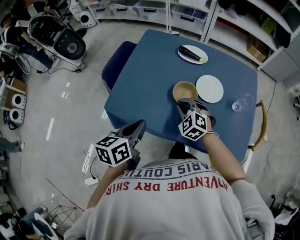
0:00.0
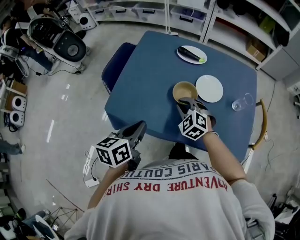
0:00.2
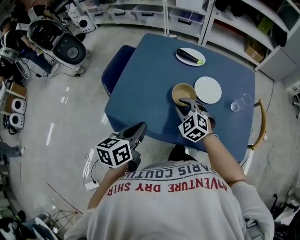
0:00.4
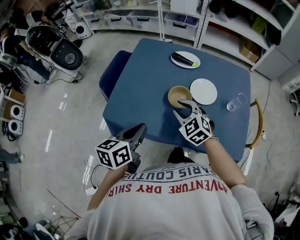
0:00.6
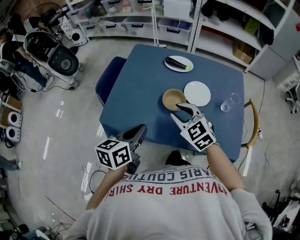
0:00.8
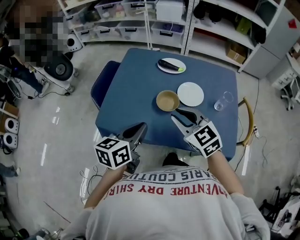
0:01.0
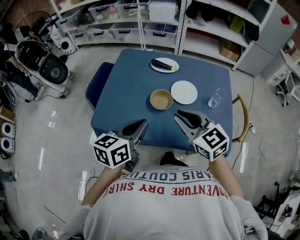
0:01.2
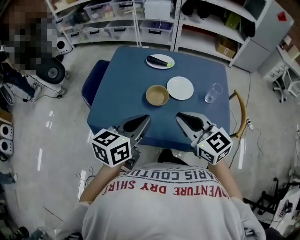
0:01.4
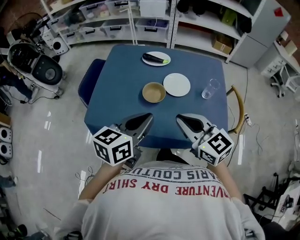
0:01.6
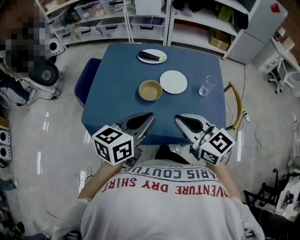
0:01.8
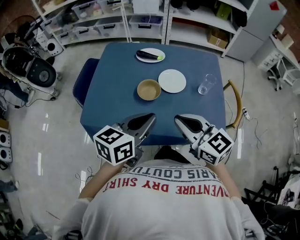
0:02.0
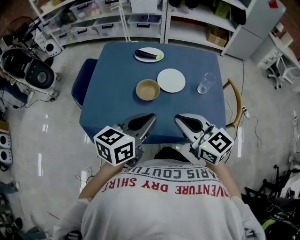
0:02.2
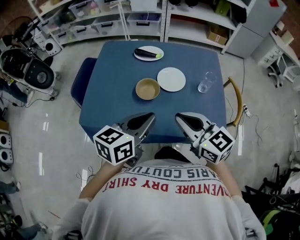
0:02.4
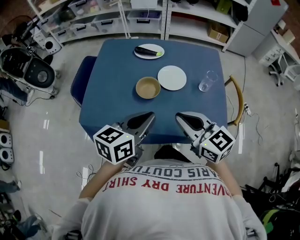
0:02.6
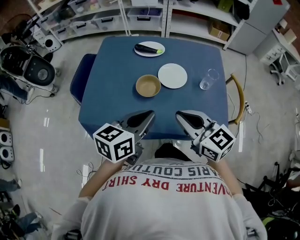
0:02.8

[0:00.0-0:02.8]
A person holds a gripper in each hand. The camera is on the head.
0:00.0 to 0:01.4: The left gripper travels to the right and upward by approximately 15 cm, and rotates roughly 20 degrees; the right gripper travels upward, backward and to the right by about 25 cm, and rotates about 50 degrees.
0:01.4 to 0:02.8: The left gripper ends up some 5 cm from where it was.

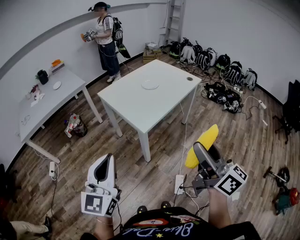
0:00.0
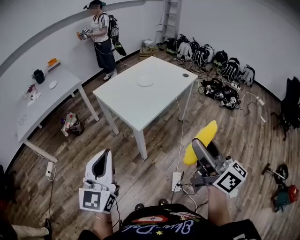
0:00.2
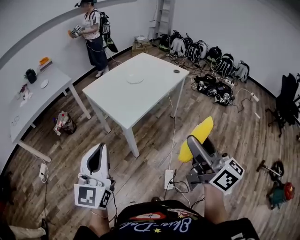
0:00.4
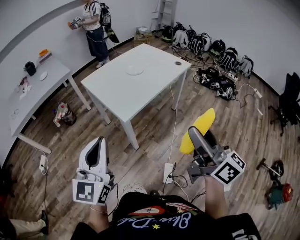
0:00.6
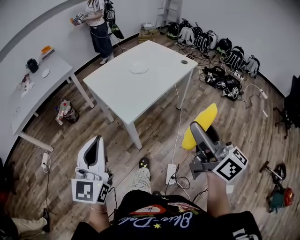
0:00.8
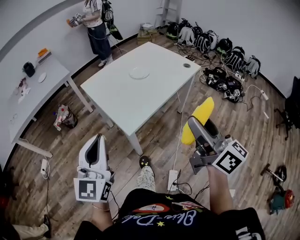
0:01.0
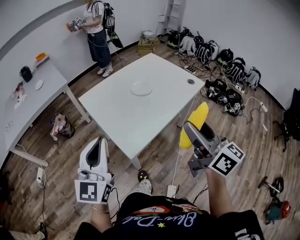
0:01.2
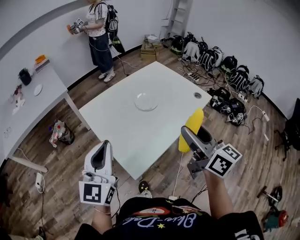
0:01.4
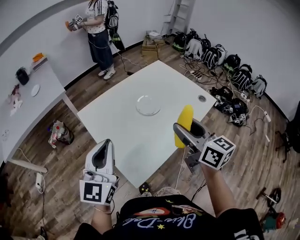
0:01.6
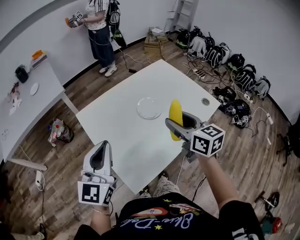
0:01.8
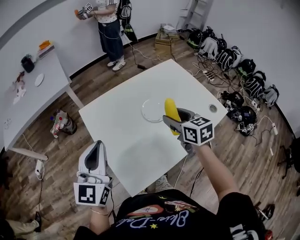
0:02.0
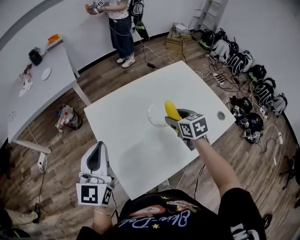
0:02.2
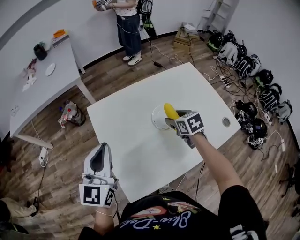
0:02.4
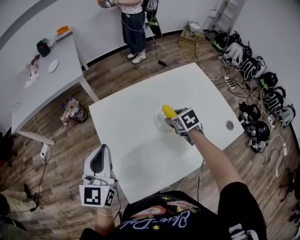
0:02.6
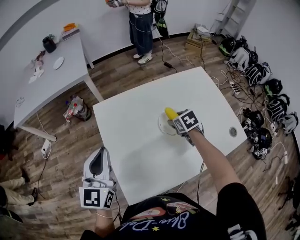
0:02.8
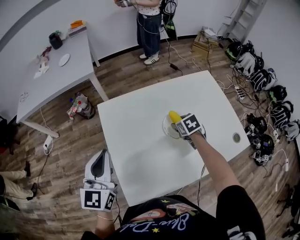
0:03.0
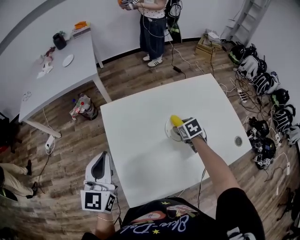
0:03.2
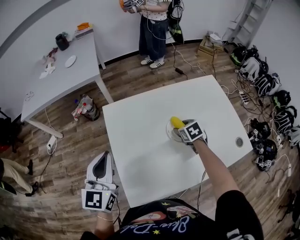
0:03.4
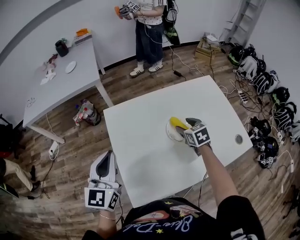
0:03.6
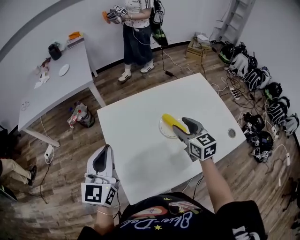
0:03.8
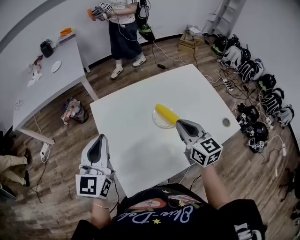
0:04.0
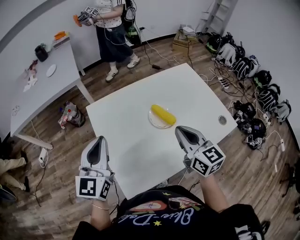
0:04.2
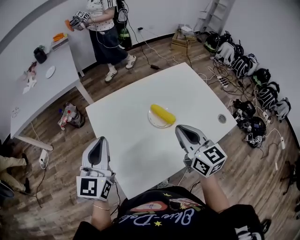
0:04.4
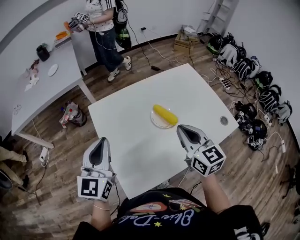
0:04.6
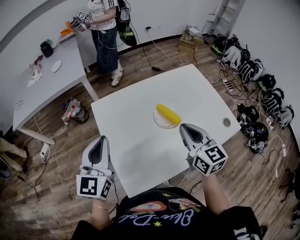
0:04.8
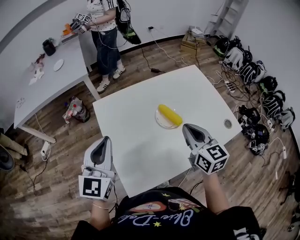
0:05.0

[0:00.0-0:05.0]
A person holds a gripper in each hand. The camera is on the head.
0:00.0 to 0:01.6: The two grippers travel together, forward, roughly 50 cm. The right gripper swivels some 20 degrees.
0:01.6 to 0:03.4: The left gripper moves approximately 10 cm, and rotates approximately 30 degrees. The right gripper ends up some 40 cm from where it was, and tips its fingers downward by some 50 degrees.
0:03.4 to 0:05.0: The right gripper travels upward and backward by roughly 25 cm, points its fingers roughly 40 degrees further upward, and closes its fingers.

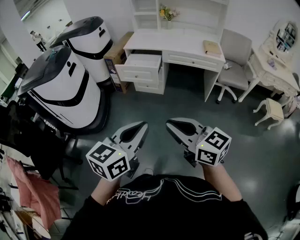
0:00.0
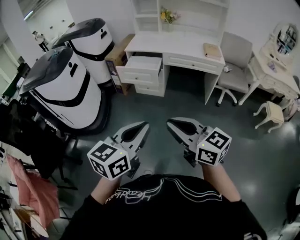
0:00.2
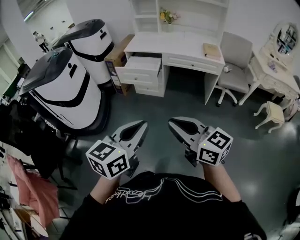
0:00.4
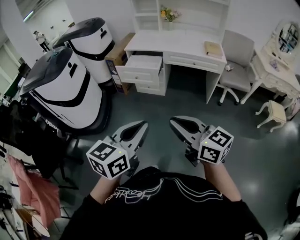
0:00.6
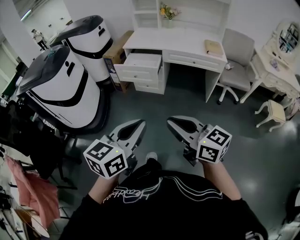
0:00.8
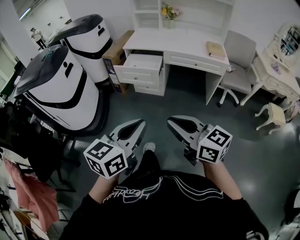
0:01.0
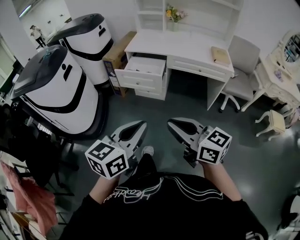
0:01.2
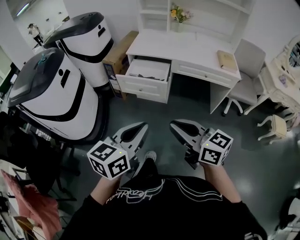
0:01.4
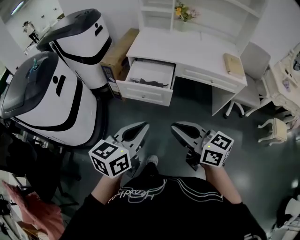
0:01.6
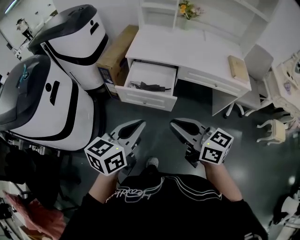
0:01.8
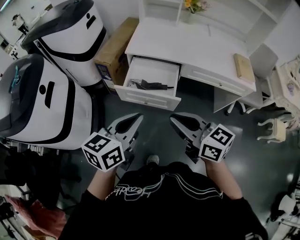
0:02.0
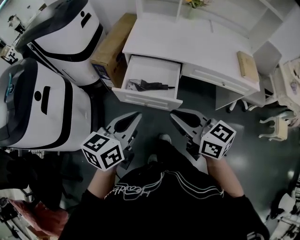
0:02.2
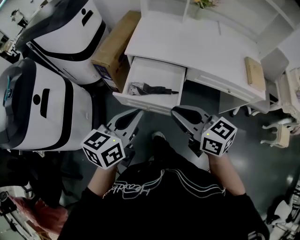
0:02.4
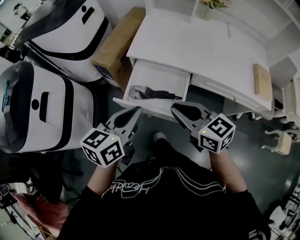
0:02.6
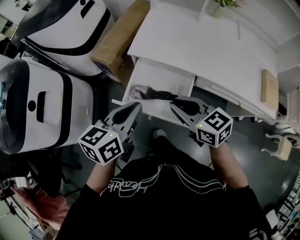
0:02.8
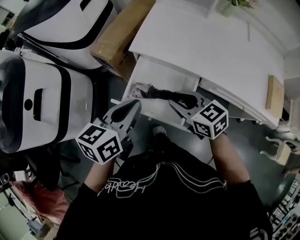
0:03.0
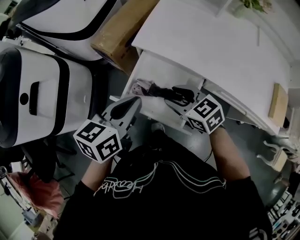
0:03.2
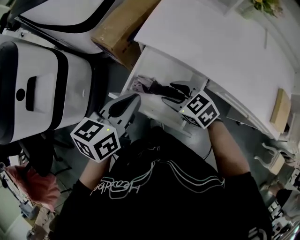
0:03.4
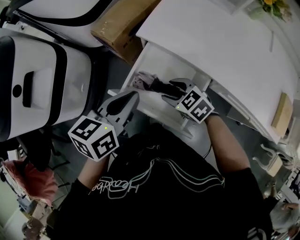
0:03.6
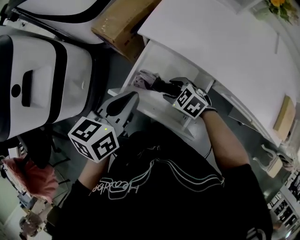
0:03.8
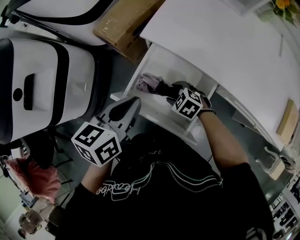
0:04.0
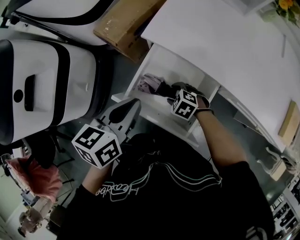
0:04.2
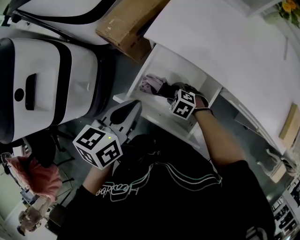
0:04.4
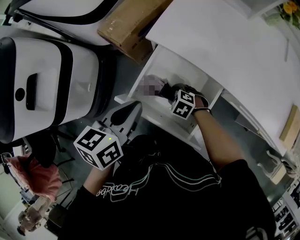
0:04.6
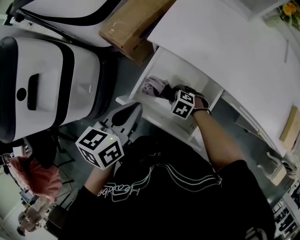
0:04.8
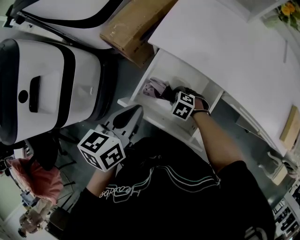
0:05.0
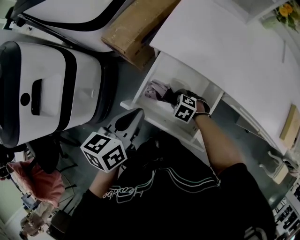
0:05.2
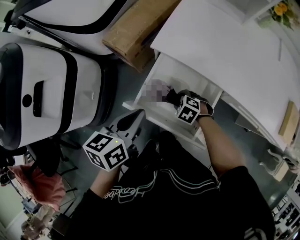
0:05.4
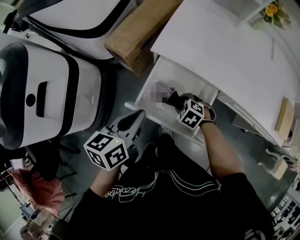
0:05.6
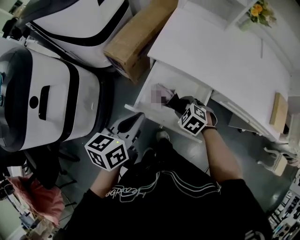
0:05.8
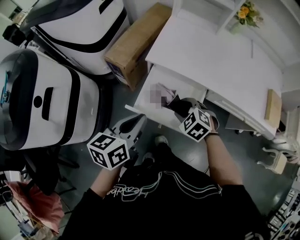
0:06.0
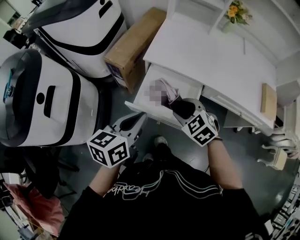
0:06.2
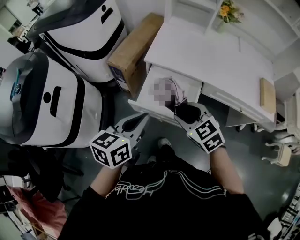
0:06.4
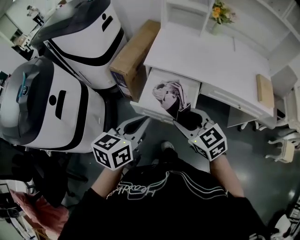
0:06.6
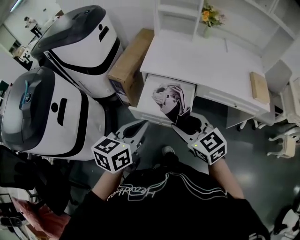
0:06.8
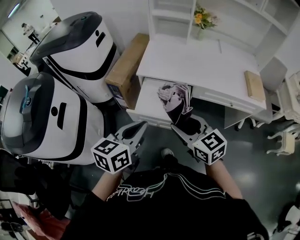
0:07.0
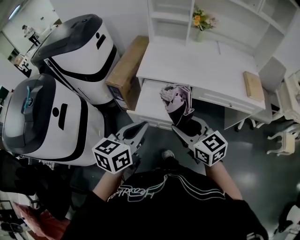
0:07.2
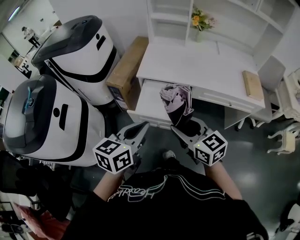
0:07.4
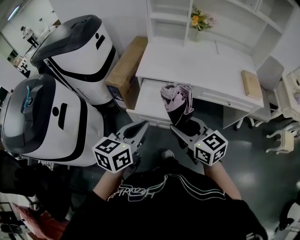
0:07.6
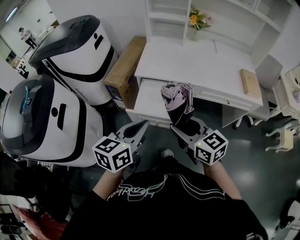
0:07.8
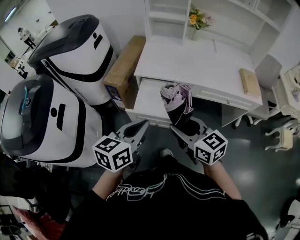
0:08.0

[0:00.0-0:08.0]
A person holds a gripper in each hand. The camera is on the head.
0:00.0 to 0:01.6: The two grippers go approximately 35 cm forward.
0:01.6 to 0:03.2: Both grippers are carried forward, about 50 cm. The left gripper turns by approximately 20 degrees. Meanwhile the right gripper shifts about 25 cm downward, points its fingers about 30 degrees further downward, and opens its fingers.
0:03.2 to 0:04.8: The right gripper moves downward, roughly 25 cm, and points its fingers roughly 30 degrees further downward, while the left gripper travels downward by some 5 cm.
0:04.8 to 0:06.4: The left gripper moves roughly 20 cm, while the right gripper is displaced upward by about 35 cm, and angles its fingers upward, by roughly 30 degrees.
0:06.4 to 0:08.0: Both grippers move backward and upward, roughly 10 cm. The right gripper rotates some 30 degrees.

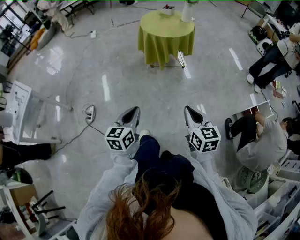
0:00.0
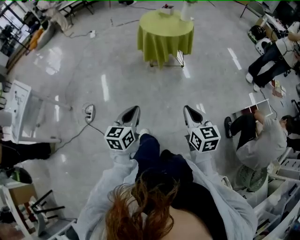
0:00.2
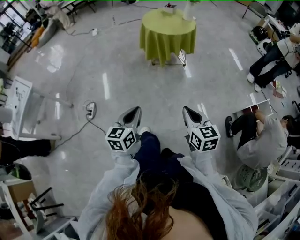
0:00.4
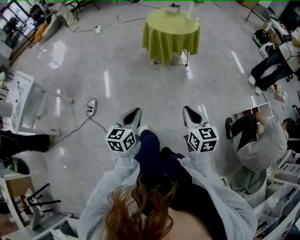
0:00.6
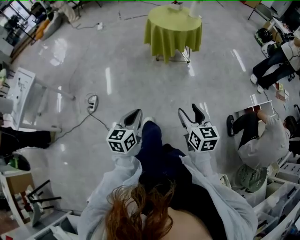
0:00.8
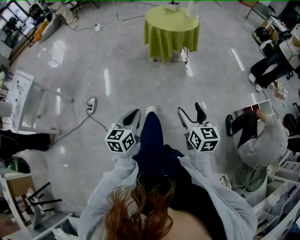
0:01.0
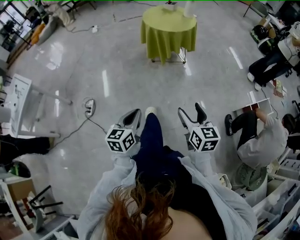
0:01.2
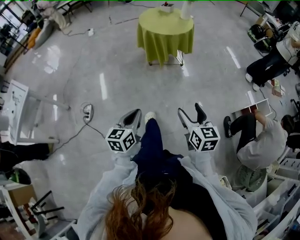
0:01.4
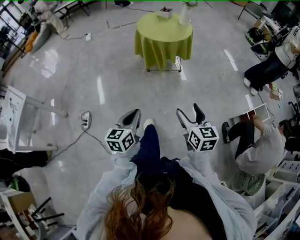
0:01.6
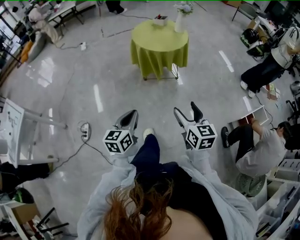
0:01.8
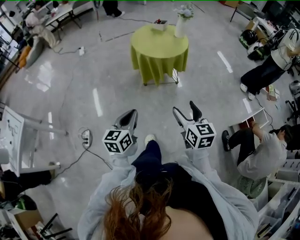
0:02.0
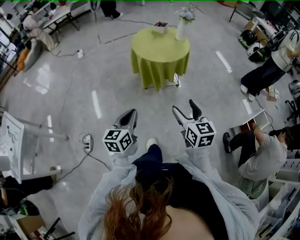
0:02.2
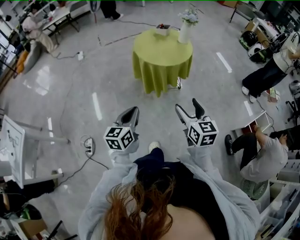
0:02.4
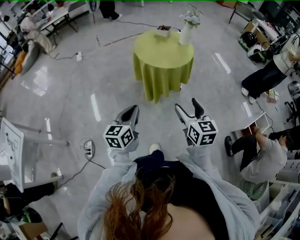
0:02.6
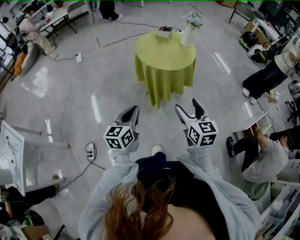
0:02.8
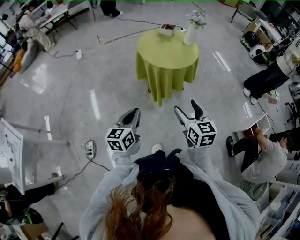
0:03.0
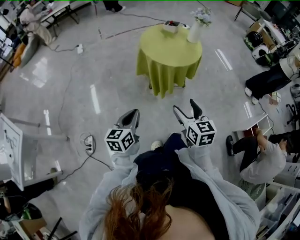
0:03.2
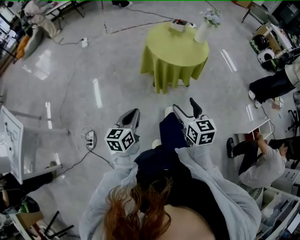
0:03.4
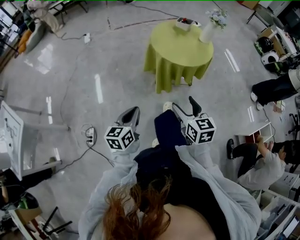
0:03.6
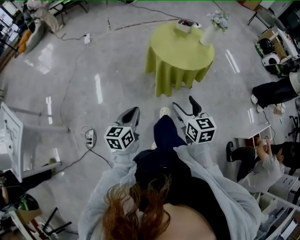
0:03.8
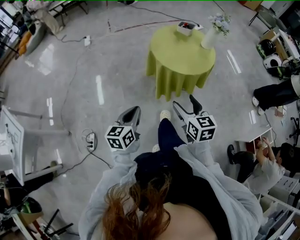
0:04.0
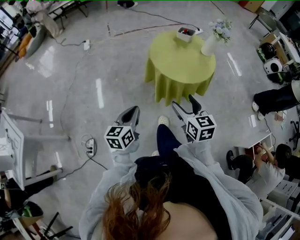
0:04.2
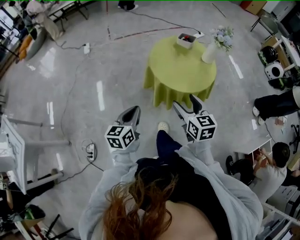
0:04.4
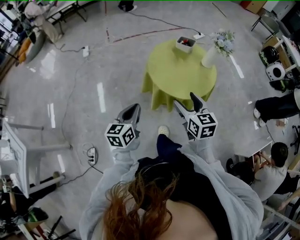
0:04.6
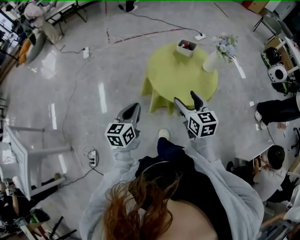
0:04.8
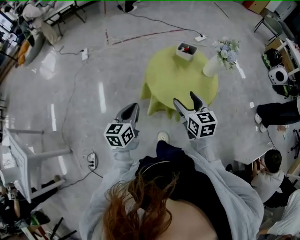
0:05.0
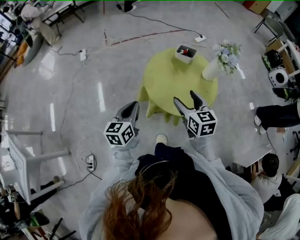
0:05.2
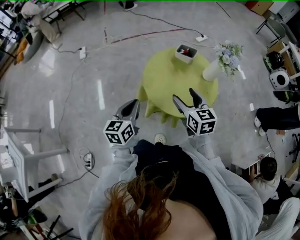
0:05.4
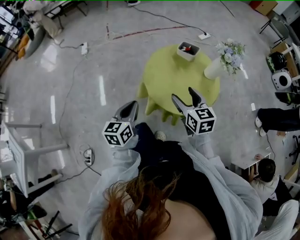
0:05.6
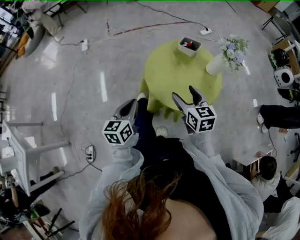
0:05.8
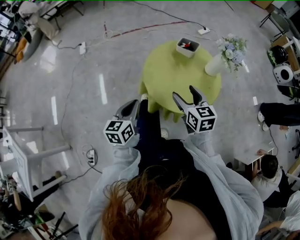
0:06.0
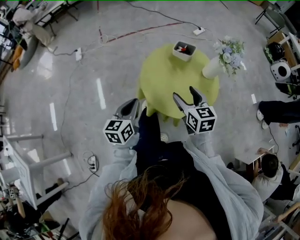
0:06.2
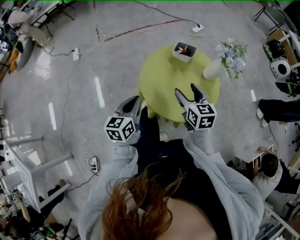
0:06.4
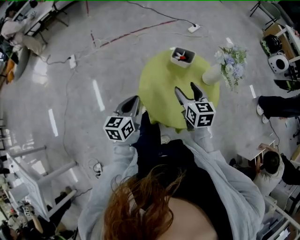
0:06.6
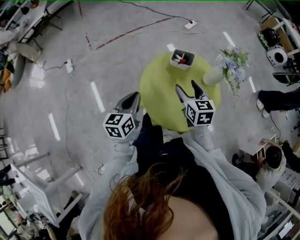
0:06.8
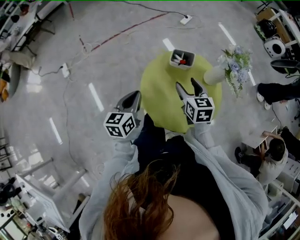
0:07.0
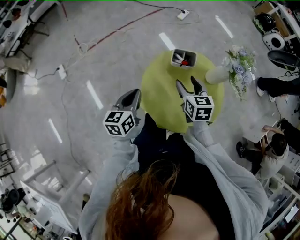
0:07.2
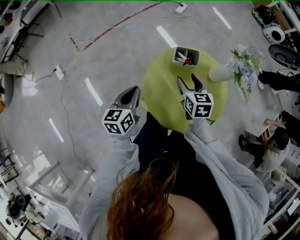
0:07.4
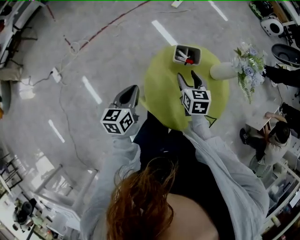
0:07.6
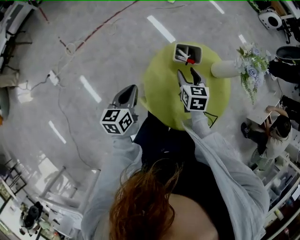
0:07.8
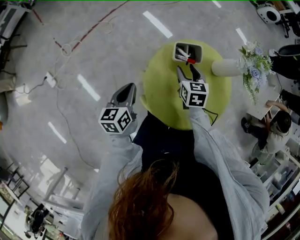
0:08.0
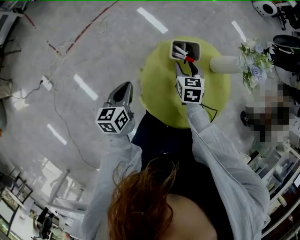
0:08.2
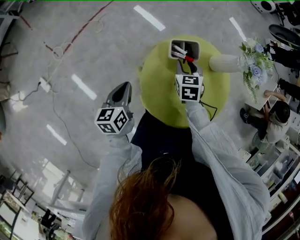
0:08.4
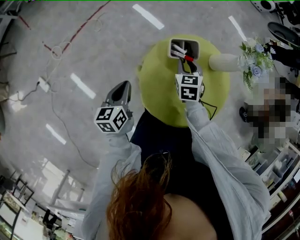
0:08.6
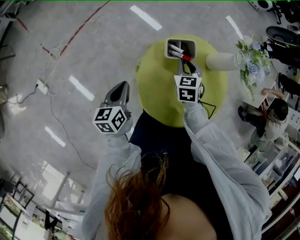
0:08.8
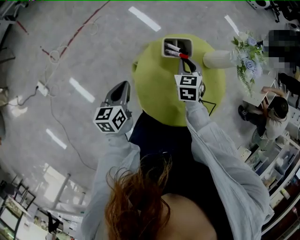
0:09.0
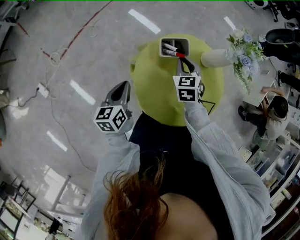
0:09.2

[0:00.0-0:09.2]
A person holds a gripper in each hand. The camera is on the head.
0:00.0 to 0:01.6: The two grippers go roughly 5 cm forward. The right gripper opens up.
0:01.6 to 0:03.0: Both grippers travel together forward and to the left, approximately 30 cm.
0:03.0 to 0:04.6: The grippers both shift forward by roughly 25 cm.
0:04.6 to 0:06.2: Both grippers move forward, approximately 15 cm.
0:06.2 to 0:07.6: The right gripper ends up roughly 25 cm from where it was, and changes its angle by about 30 degrees, while the left gripper ends up roughly 25 cm from where it was, and rotates roughly 20 degrees.
0:07.6 to 0:09.2: The right gripper travels forward by roughly 5 cm, turns by about 20 degrees, and closes; the left gripper shifts by some 5 cm.
